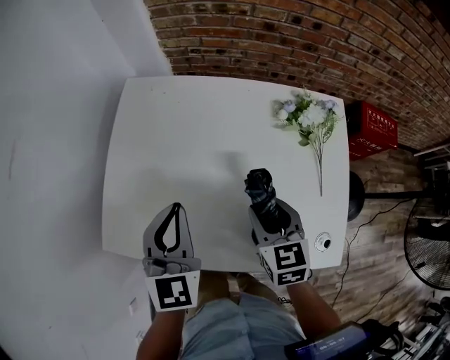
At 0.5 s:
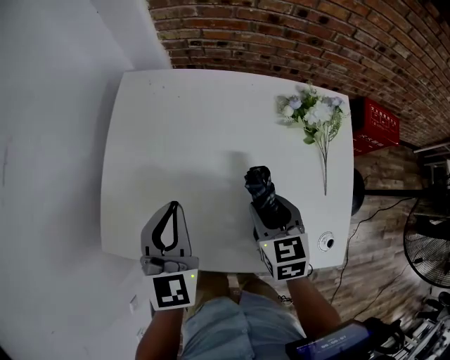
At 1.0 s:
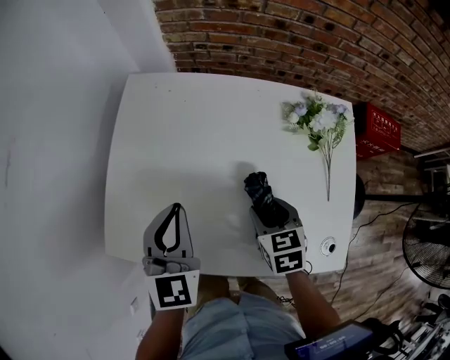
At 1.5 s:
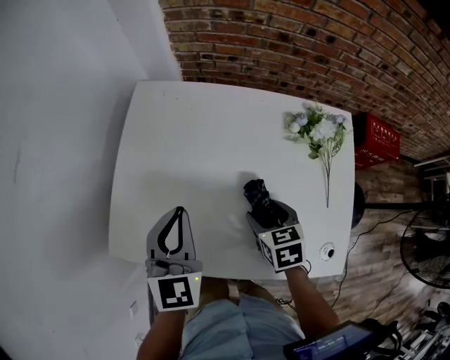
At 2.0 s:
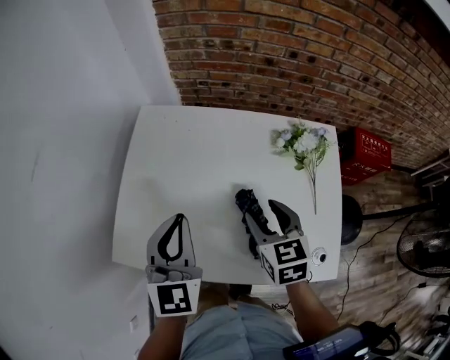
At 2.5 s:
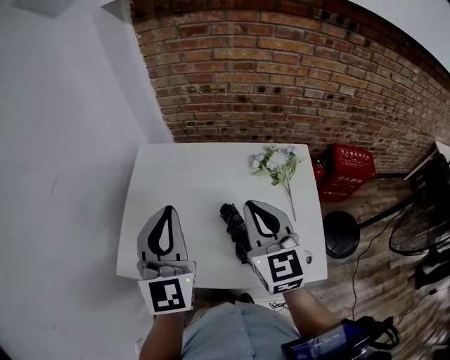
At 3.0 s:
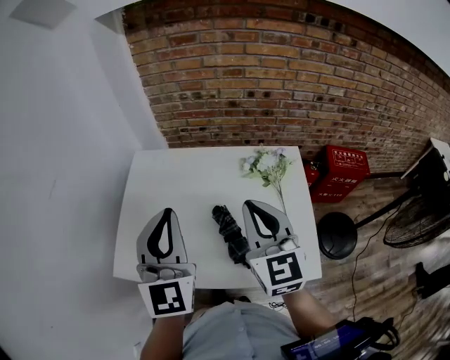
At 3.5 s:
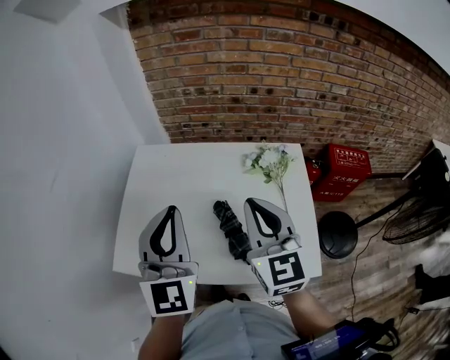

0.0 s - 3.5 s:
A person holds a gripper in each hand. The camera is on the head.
0.0 s - 2.0 s: The grippers both shift upward by roughly 5 cm.
2.0 s - 3.5 s: The right gripper shifts roughly 20 cm upward, tips its fingers upward by some 30 degrees, and closes up, while the left gripper heads upward and to the right, covering some 15 cm.

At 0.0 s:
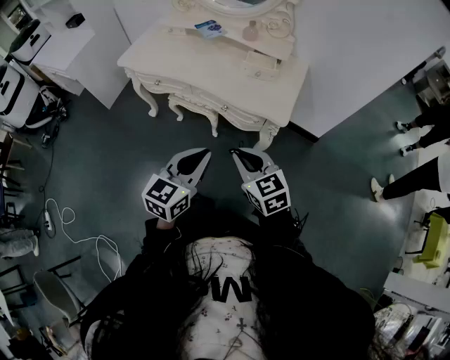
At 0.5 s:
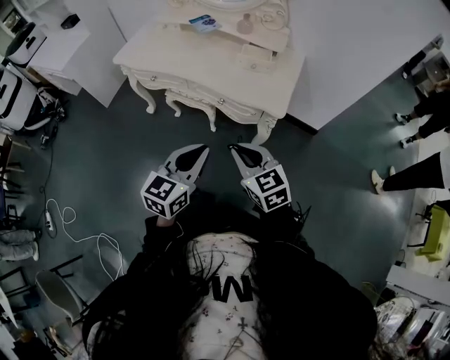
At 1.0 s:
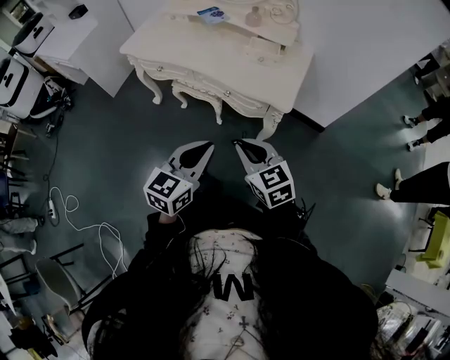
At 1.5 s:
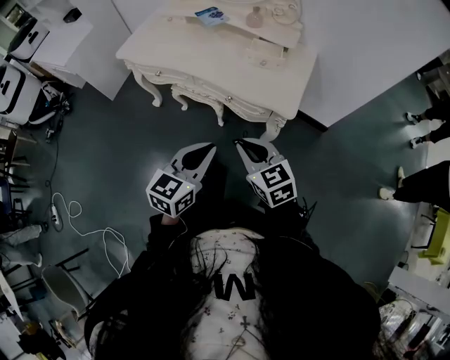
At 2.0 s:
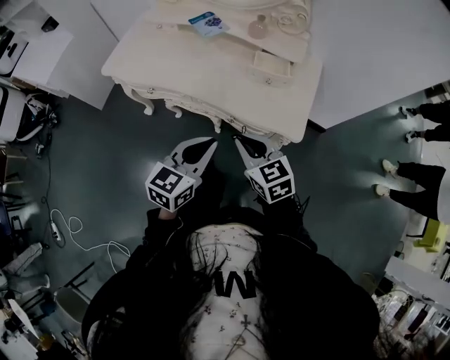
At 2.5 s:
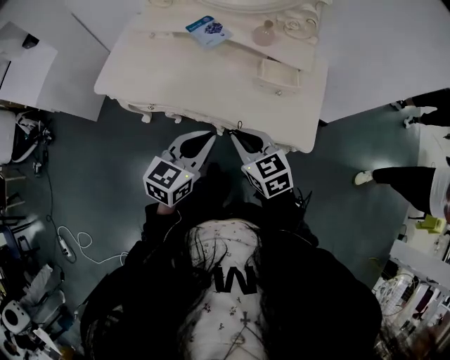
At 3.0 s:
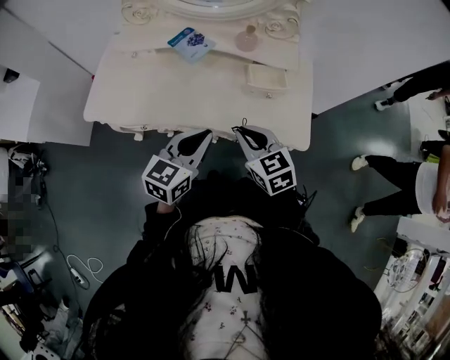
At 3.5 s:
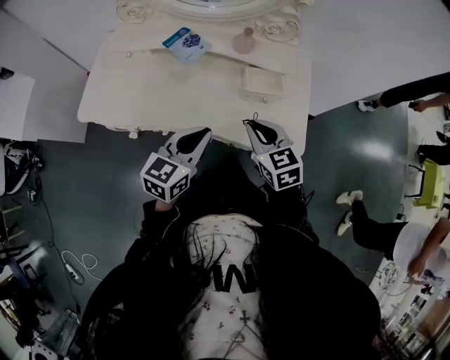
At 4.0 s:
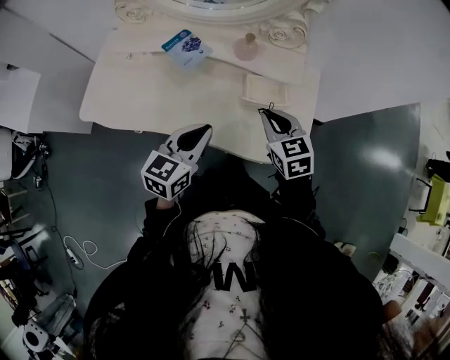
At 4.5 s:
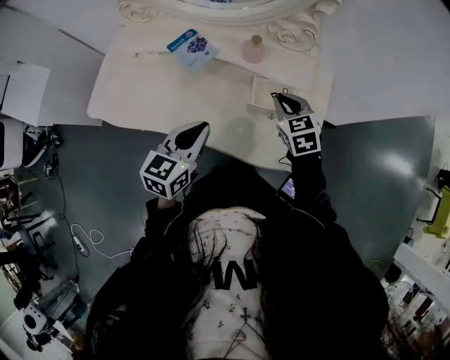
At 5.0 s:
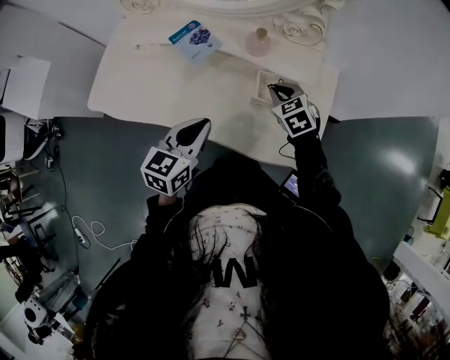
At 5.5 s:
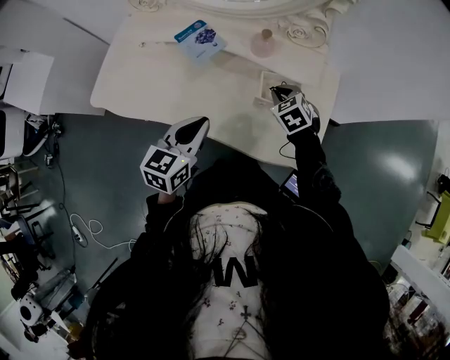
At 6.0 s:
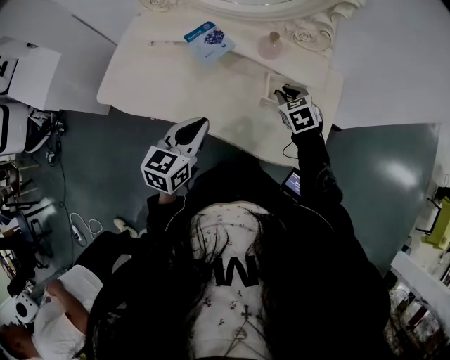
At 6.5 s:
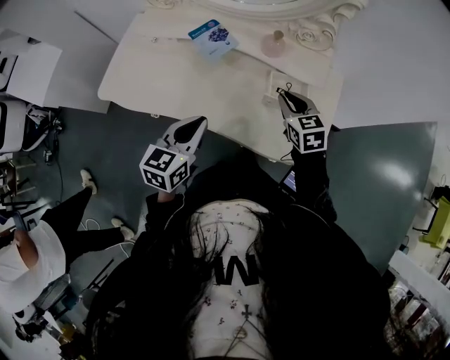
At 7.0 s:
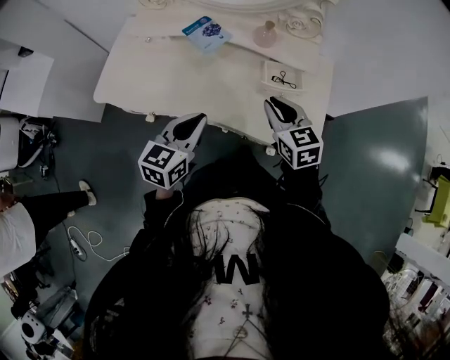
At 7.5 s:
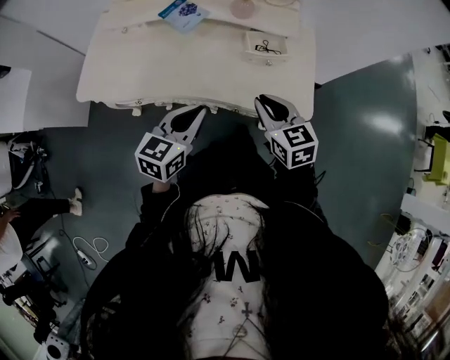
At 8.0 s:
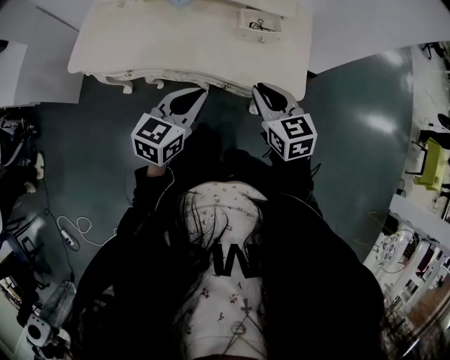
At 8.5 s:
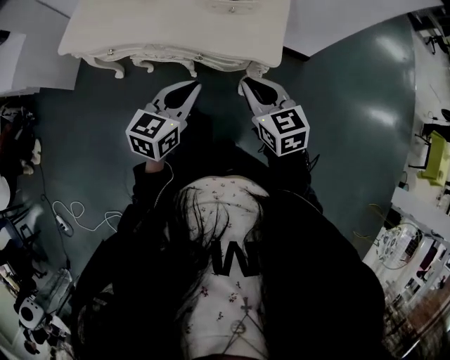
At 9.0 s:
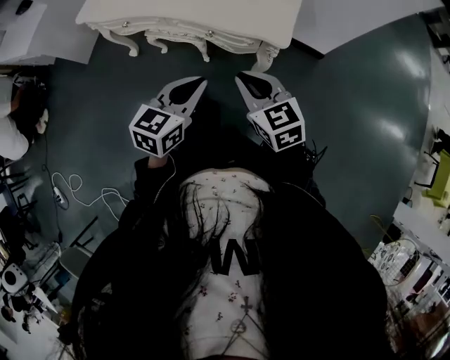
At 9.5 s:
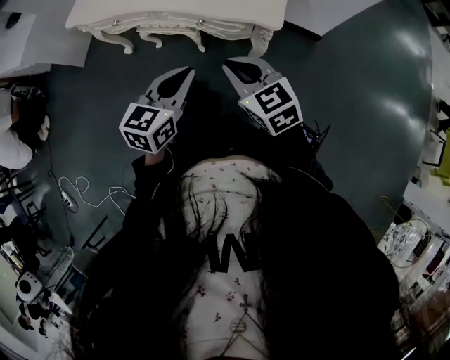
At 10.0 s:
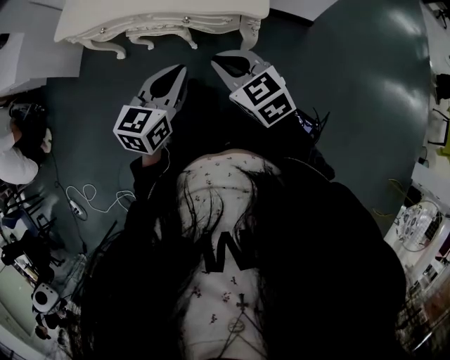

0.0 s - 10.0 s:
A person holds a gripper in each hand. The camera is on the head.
0.0 s - 2.0 s: The two grippers go some 15 cm forward.
2.0 s - 4.0 s: Both grippers move forward, about 25 cm.
4.0 s - 6.0 s: The right gripper travels downward and forward by some 15 cm.
6.0 s - 8.0 s: The left gripper heads backward, covering roughly 15 cm. The right gripper heads backward and upward, covering about 30 cm, and rotates some 30 degrees.
8.0 s - 10.0 s: The right gripper moves backward, roughly 20 cm. Meanwhile the left gripper is displaced backward and to the right by roughly 20 cm.

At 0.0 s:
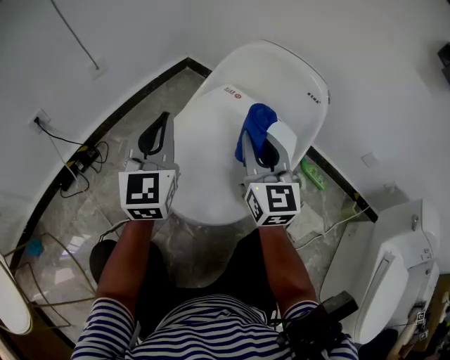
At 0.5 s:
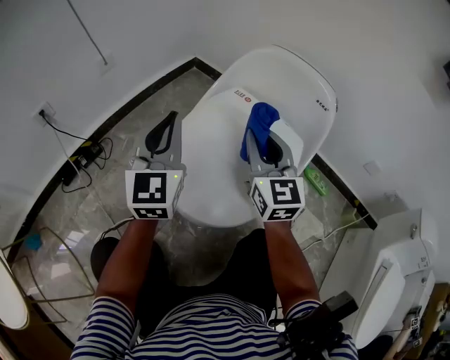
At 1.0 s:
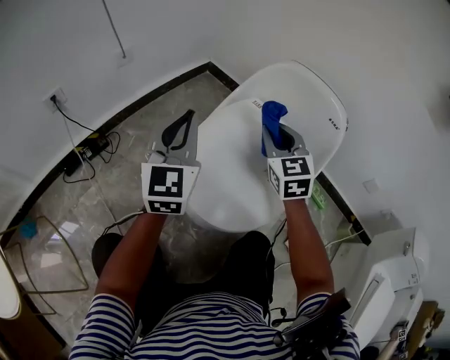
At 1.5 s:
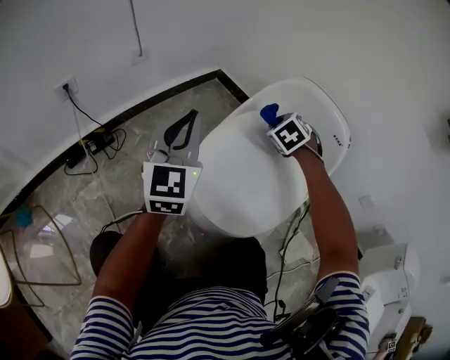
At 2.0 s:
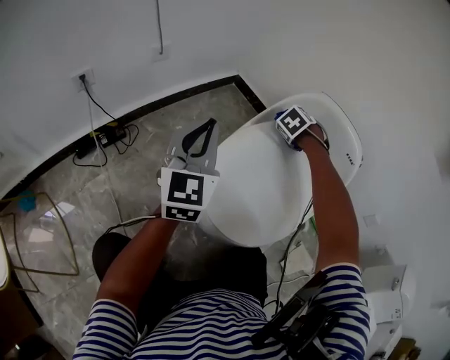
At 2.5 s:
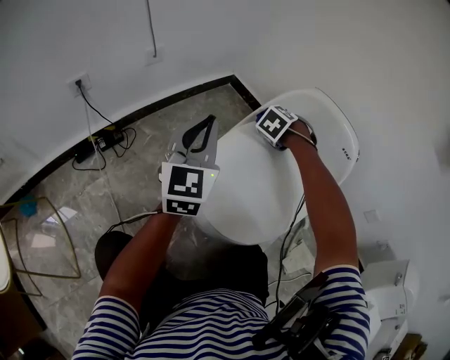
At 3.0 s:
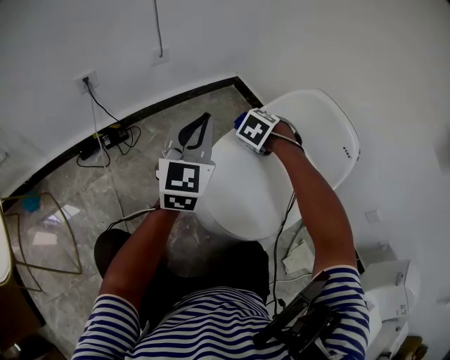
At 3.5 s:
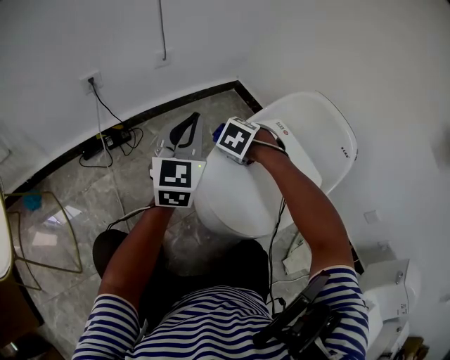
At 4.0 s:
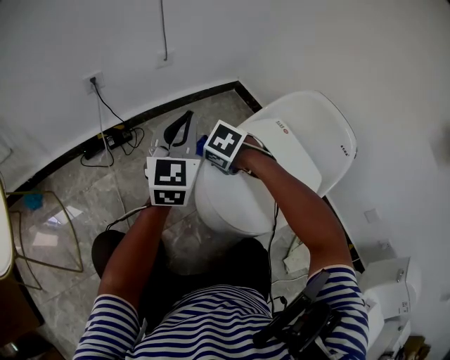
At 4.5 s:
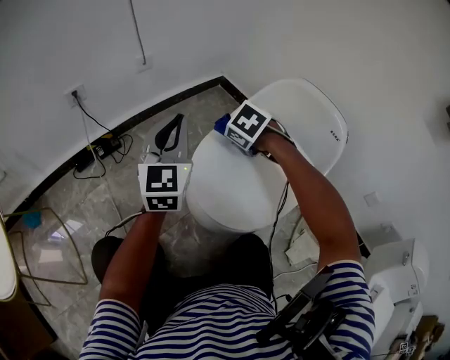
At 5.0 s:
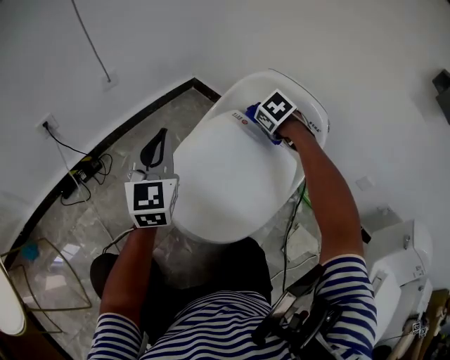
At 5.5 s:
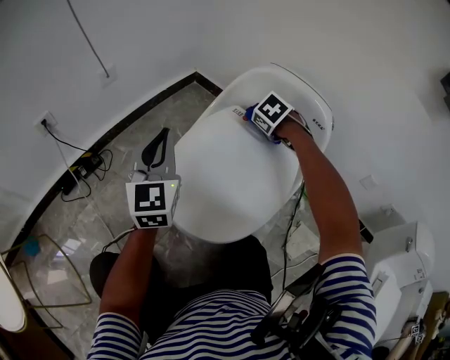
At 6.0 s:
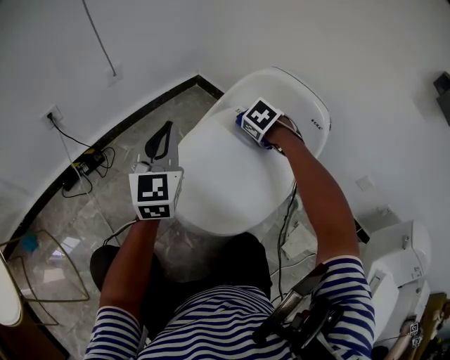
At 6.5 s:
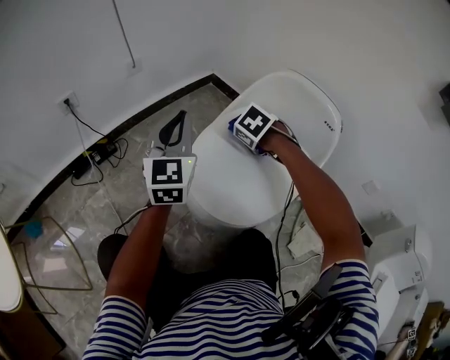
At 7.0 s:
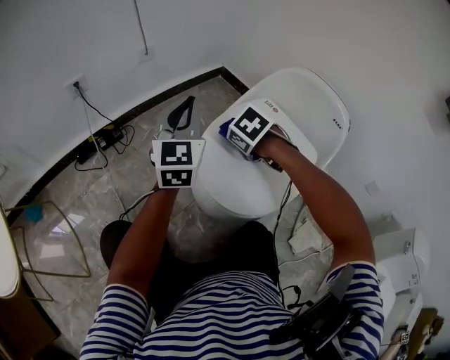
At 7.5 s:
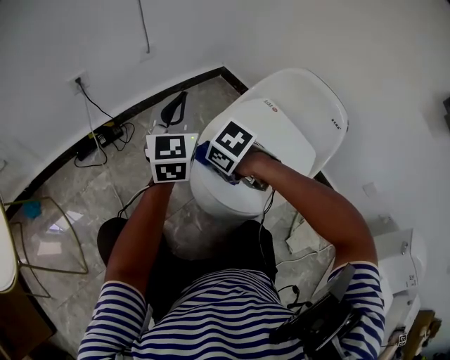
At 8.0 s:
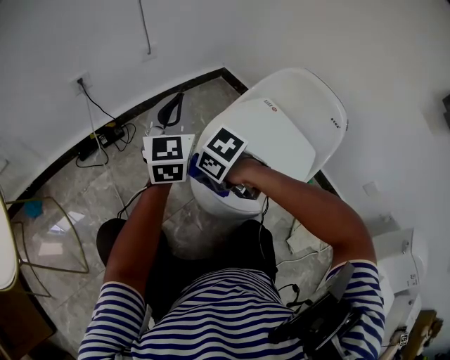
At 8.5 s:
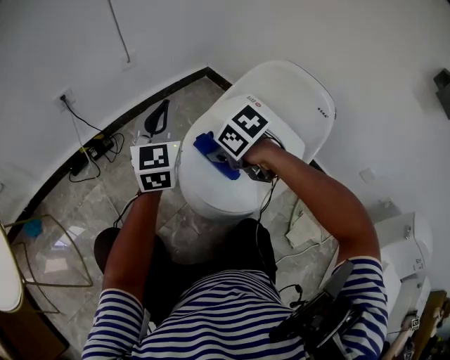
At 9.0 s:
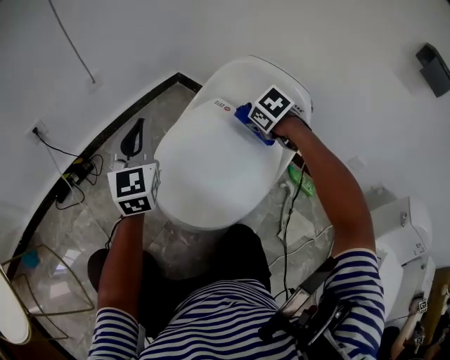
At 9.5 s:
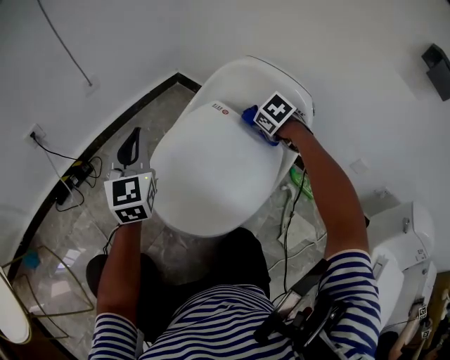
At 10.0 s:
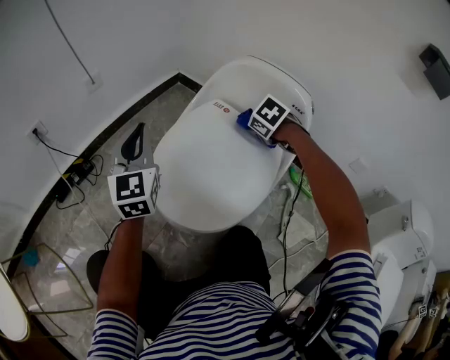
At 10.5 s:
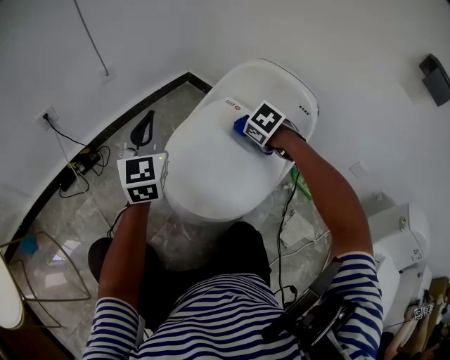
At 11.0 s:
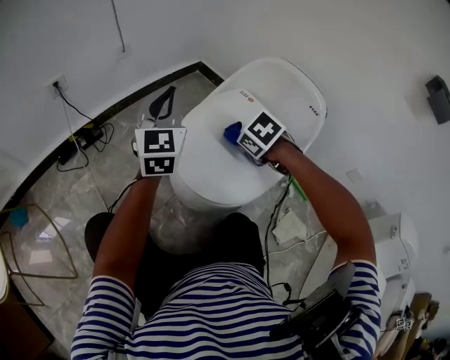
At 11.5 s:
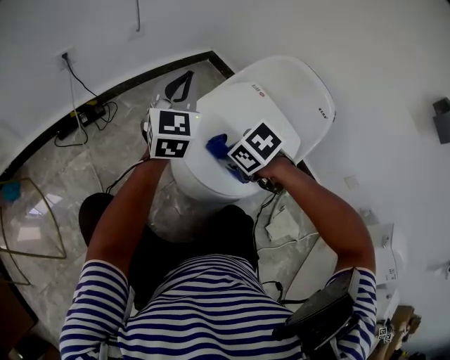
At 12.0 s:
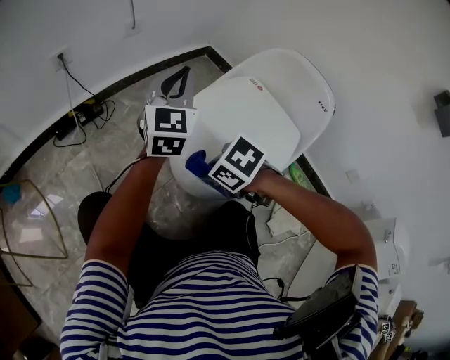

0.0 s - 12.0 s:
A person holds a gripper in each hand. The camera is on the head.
0.0 s - 2.0 s: The left gripper heads to the left, covering approximately 10 cm. The right gripper shifts roughly 25 cm forward and downward, and points its fingers some 60 degrees further downward.
2.0 s - 4.0 s: The left gripper changes place by roughly 5 cm; the right gripper shifts by about 30 cm, and swivels roughly 30 degrees.
4.0 s - 6.0 s: The left gripper moves about 10 cm, while the right gripper changes place by roughly 30 cm, and changes its angle by about 30 degrees.
6.0 s - 8.0 s: The left gripper moves some 10 cm. Meanwhile the right gripper ends up approximately 35 cm from where it was, and rotates roughly 30 degrees.
8.0 s - 10.0 s: The right gripper shifts by about 40 cm, and turns by approximately 30 degrees. Meanwhile the left gripper shifts by about 10 cm.
10.0 s - 12.0 s: The right gripper shifts by roughly 35 cm, and swivels some 30 degrees.

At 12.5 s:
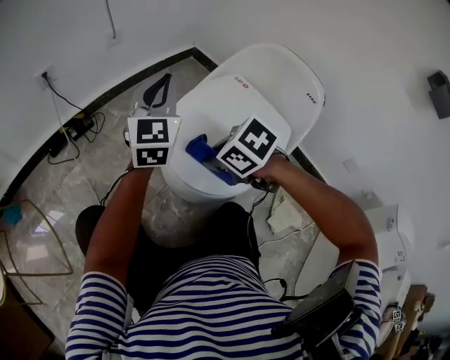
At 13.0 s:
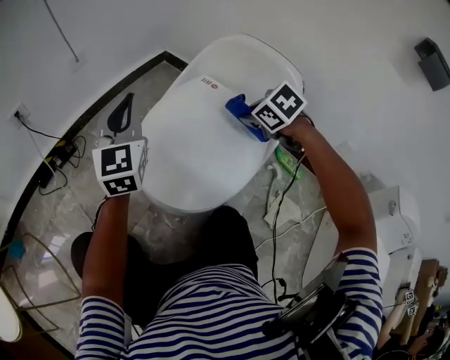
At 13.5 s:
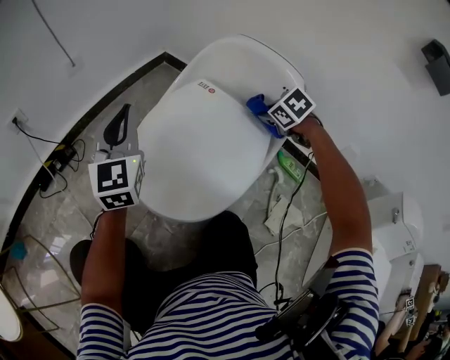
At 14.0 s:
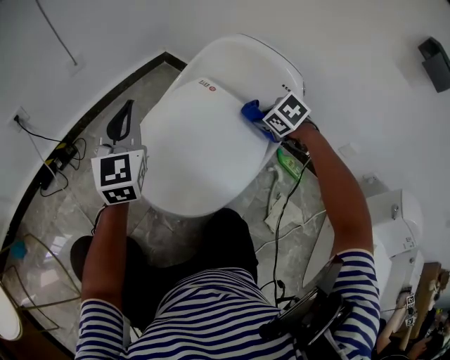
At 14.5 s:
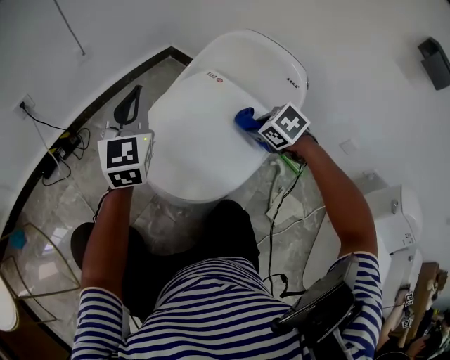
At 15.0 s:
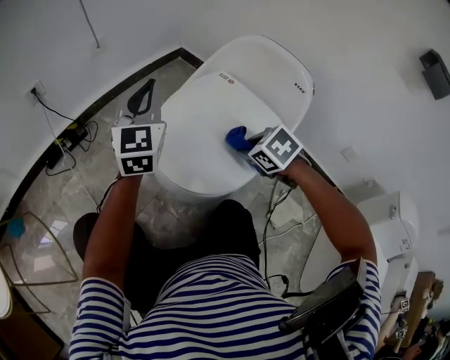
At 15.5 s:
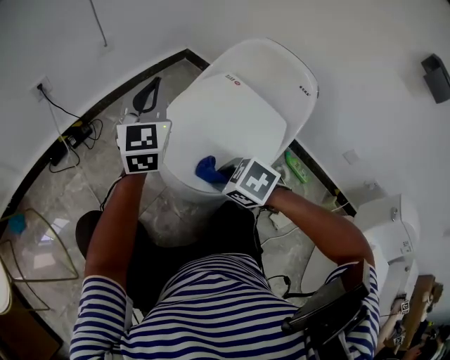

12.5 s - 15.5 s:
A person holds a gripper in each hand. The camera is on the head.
12.5 s - 14.0 s: The right gripper moves about 35 cm, and turns by about 20 degrees.
14.0 s - 15.5 s: The right gripper shifts roughly 30 cm to the left and backward; the left gripper ends up about 5 cm from where it was.
